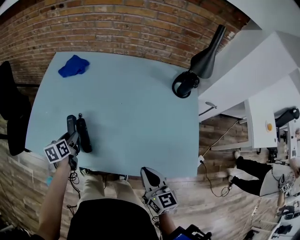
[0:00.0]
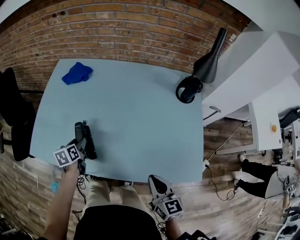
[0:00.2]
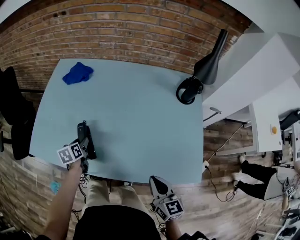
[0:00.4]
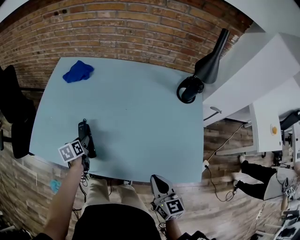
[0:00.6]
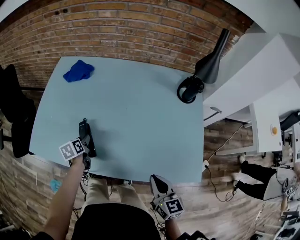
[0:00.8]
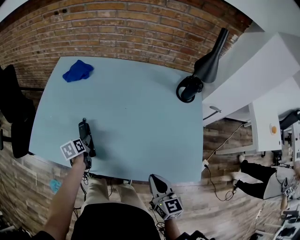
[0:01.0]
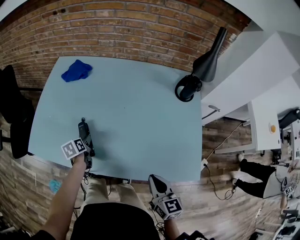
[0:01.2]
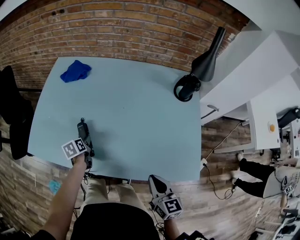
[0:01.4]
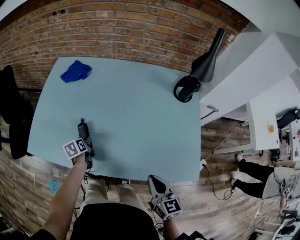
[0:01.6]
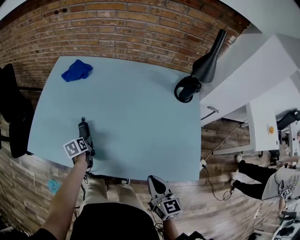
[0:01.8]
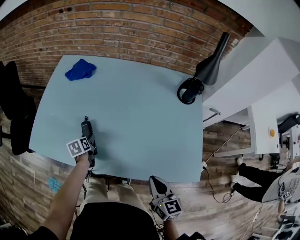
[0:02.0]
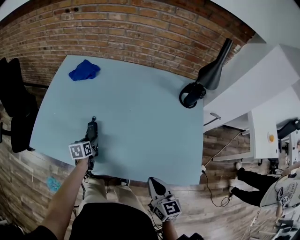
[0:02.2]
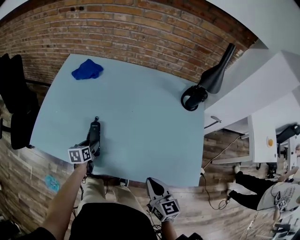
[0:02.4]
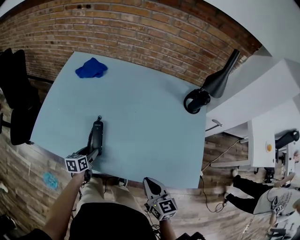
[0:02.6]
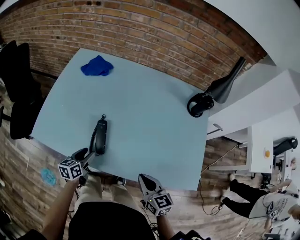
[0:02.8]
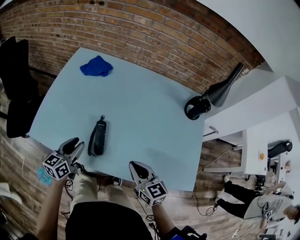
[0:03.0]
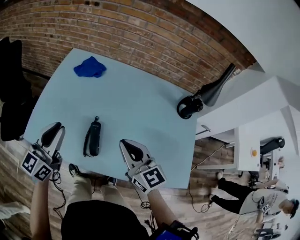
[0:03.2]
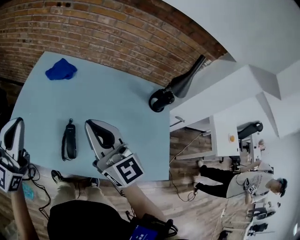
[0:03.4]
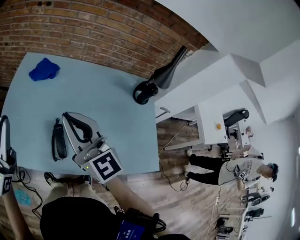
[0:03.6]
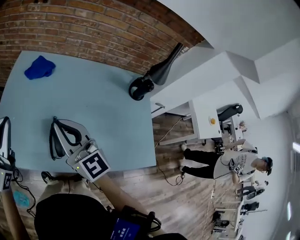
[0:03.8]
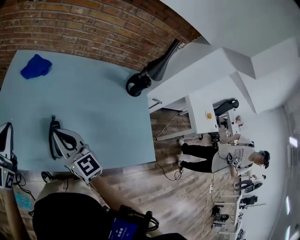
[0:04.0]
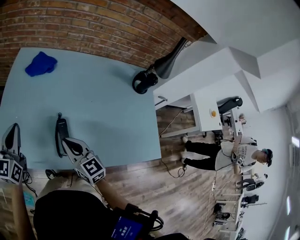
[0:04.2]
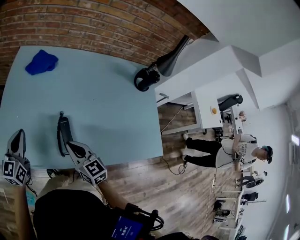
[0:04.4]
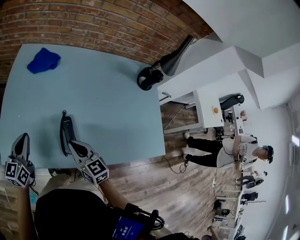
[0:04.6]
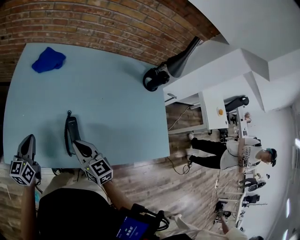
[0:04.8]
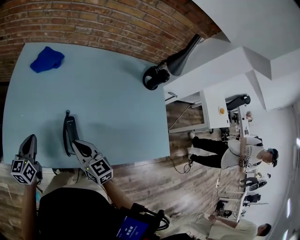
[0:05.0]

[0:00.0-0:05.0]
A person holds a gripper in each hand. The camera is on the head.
0.0 to 1.6 s: The left gripper heads downward, covering about 10 cm.
1.6 to 3.4 s: The right gripper heads upward, to the left and forward, covering about 40 cm, and points its fingers about 30 degrees further upward. Meanwhile the left gripper travels upward by about 50 cm, tilts its fingers approximately 70 degrees upward, and closes up.
3.4 to 5.0 s: The two grippers go some 30 cm downward. The left gripper angles its fingers downward, by approximately 30 degrees. The right gripper rotates some 30 degrees.

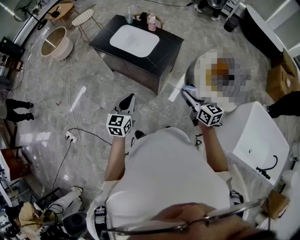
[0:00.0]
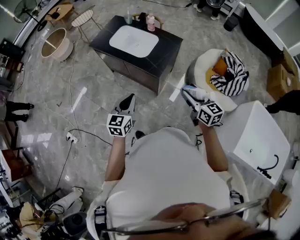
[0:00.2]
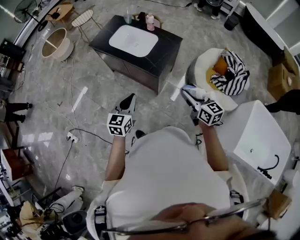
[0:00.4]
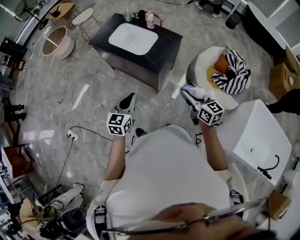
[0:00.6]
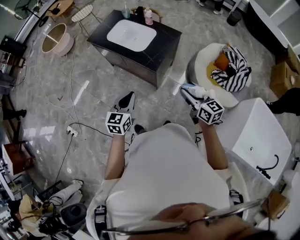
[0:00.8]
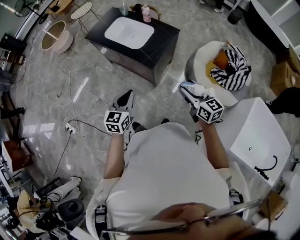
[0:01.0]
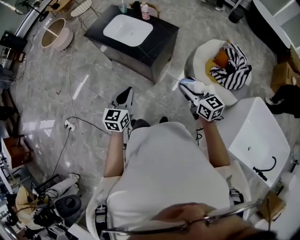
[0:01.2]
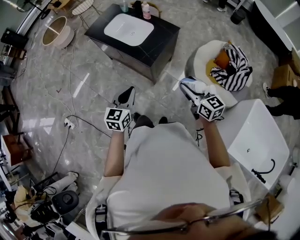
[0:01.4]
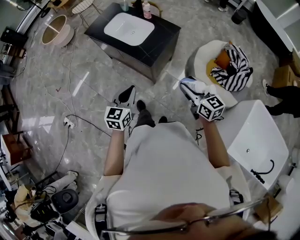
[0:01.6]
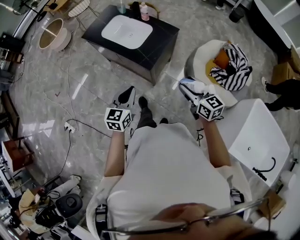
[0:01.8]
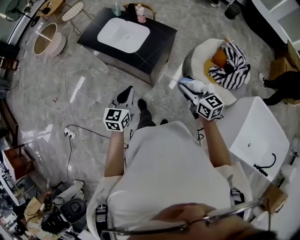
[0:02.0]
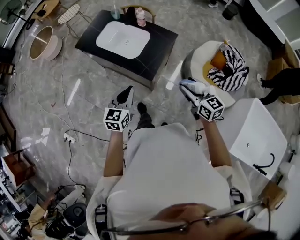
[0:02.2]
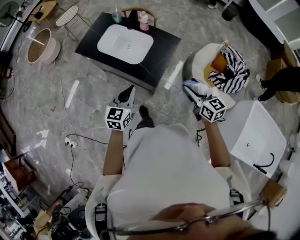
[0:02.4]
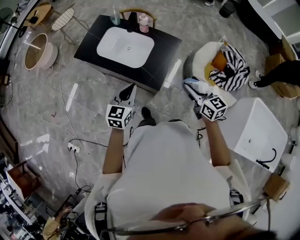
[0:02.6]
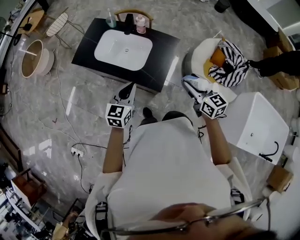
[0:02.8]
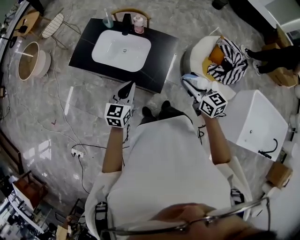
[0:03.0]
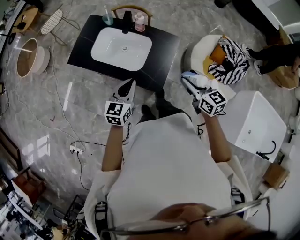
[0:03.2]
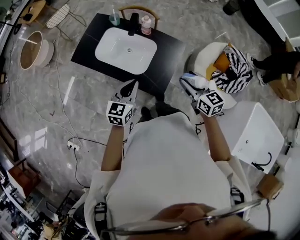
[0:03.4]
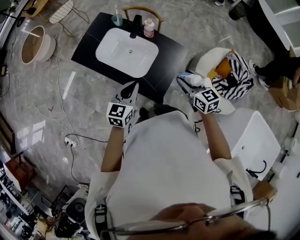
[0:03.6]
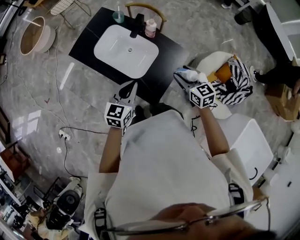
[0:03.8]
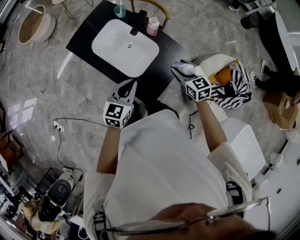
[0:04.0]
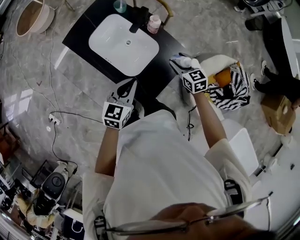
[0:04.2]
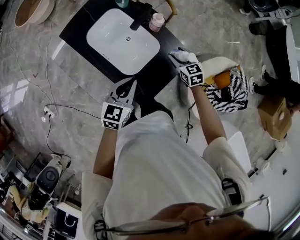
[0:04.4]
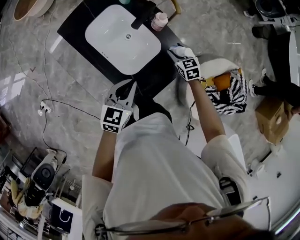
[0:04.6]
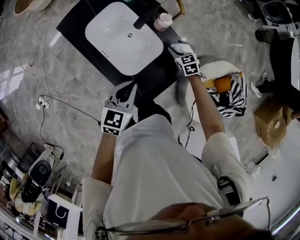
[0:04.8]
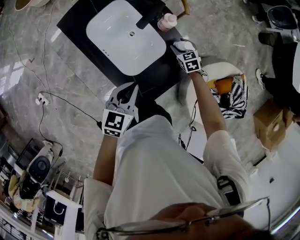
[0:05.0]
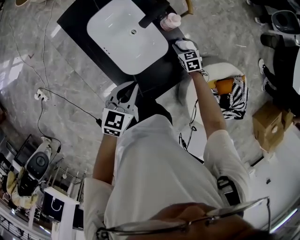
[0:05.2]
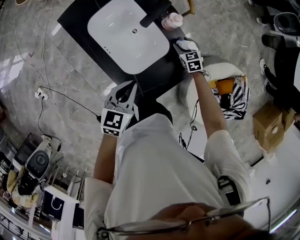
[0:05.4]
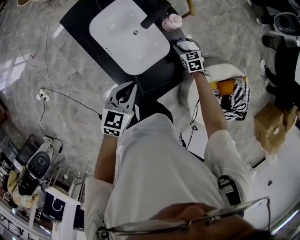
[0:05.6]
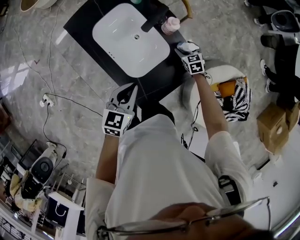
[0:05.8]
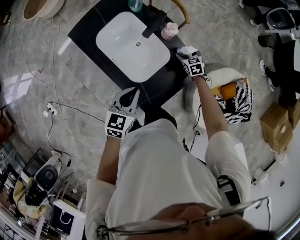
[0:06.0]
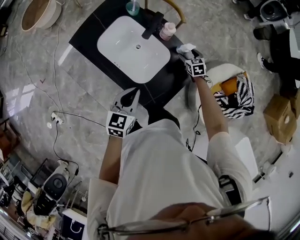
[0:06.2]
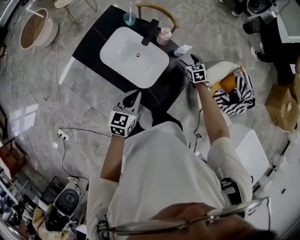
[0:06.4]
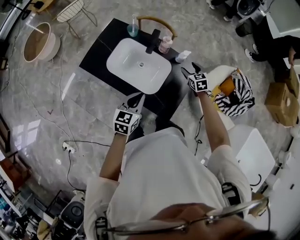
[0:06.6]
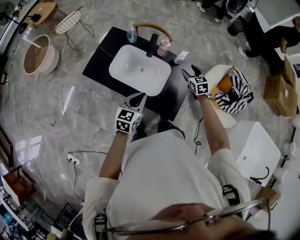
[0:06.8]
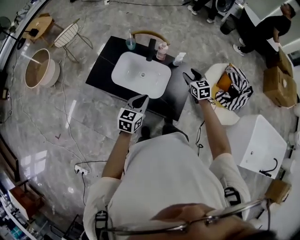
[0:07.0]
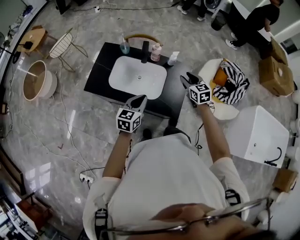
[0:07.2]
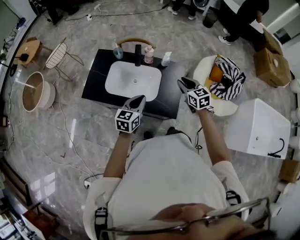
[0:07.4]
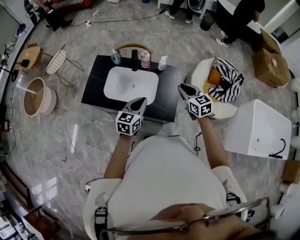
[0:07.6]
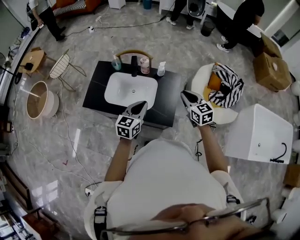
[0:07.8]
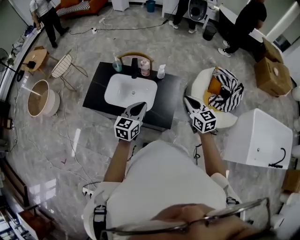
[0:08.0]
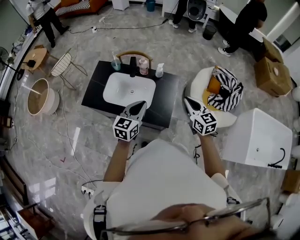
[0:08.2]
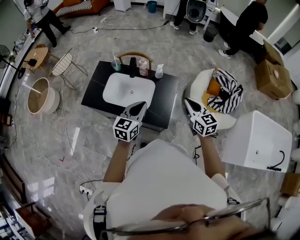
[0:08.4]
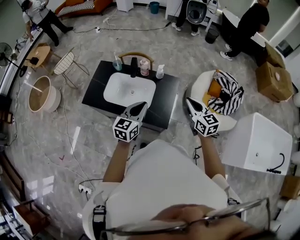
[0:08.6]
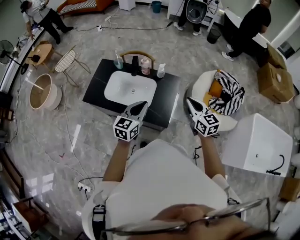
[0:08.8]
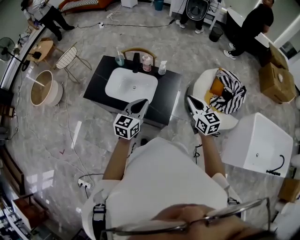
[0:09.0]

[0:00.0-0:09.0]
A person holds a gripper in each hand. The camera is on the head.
0.0 to 1.6 s: The grippers both shift to the right by some 10 cm.
1.6 to 3.0 s: Both grippers travel together forward, roughly 25 cm.
3.0 to 4.4 s: The left gripper is displaced forward, downward and to the right by approximately 15 cm; the right gripper goes about 40 cm forward and downward, and swivels roughly 30 degrees.
4.4 to 6.0 s: The right gripper heads downward and forward, covering about 15 cm.
6.0 to 7.6 s: The right gripper travels upward by roughly 30 cm, changes its angle by about 40 degrees, and closes up. The left gripper shifts about 10 cm upward, and swivels roughly 30 degrees.
7.6 to 9.0 s: The right gripper shifts some 10 cm to the right, upward and backward, while the left gripper moves upward and to the right, roughly 10 cm.

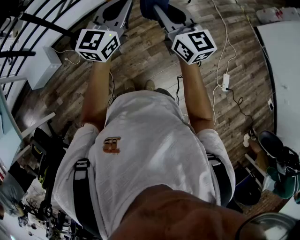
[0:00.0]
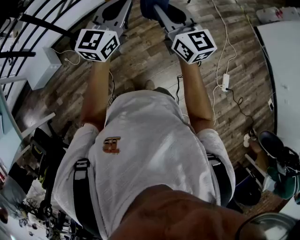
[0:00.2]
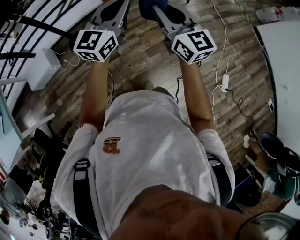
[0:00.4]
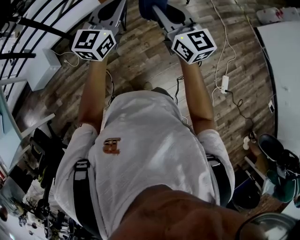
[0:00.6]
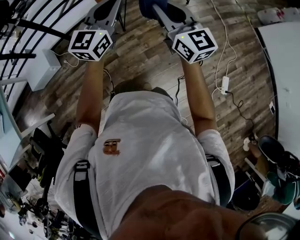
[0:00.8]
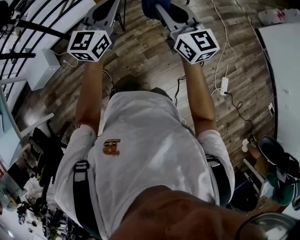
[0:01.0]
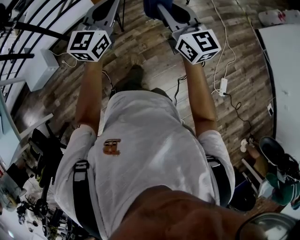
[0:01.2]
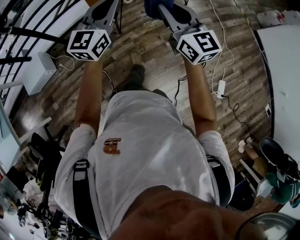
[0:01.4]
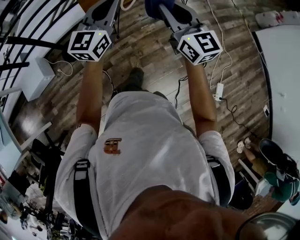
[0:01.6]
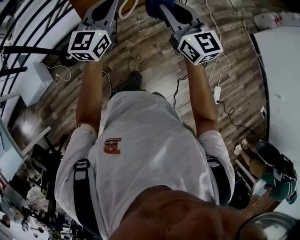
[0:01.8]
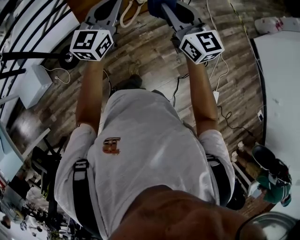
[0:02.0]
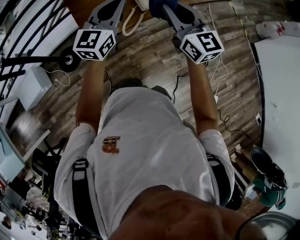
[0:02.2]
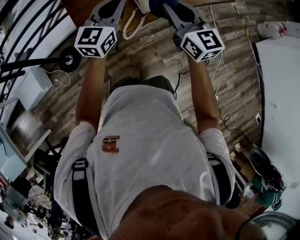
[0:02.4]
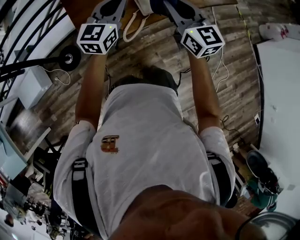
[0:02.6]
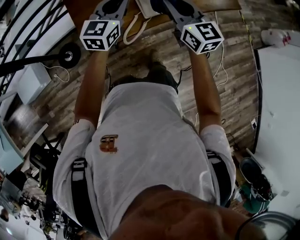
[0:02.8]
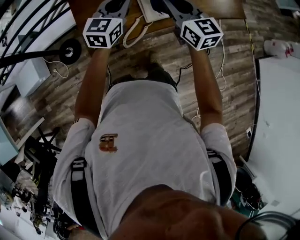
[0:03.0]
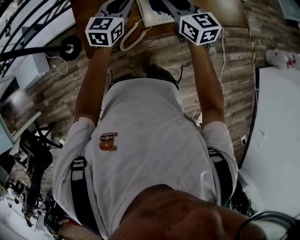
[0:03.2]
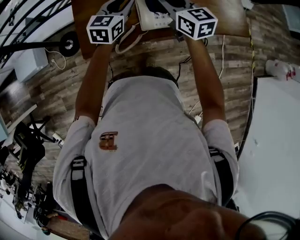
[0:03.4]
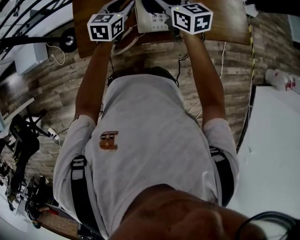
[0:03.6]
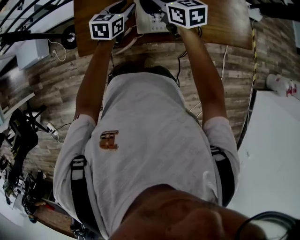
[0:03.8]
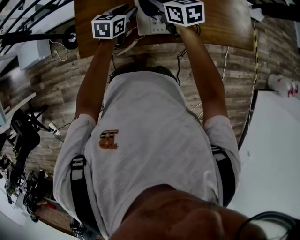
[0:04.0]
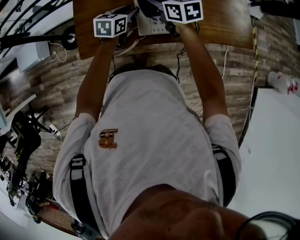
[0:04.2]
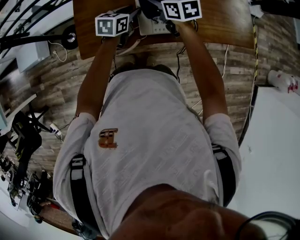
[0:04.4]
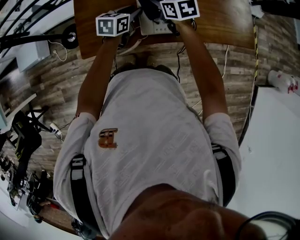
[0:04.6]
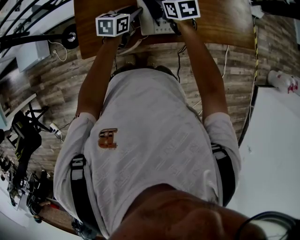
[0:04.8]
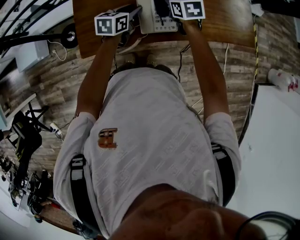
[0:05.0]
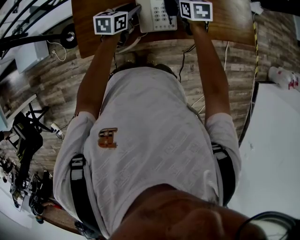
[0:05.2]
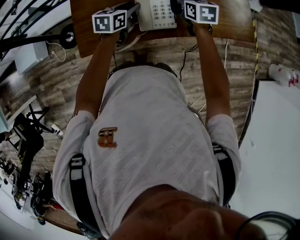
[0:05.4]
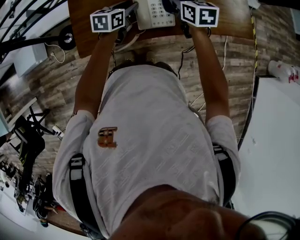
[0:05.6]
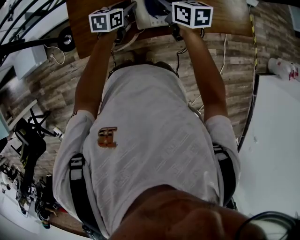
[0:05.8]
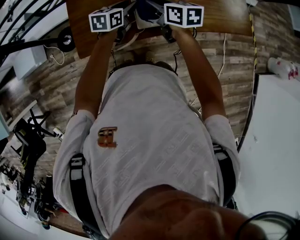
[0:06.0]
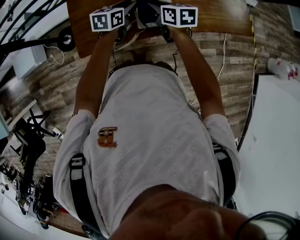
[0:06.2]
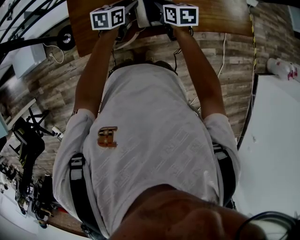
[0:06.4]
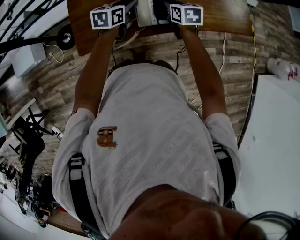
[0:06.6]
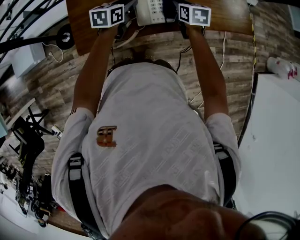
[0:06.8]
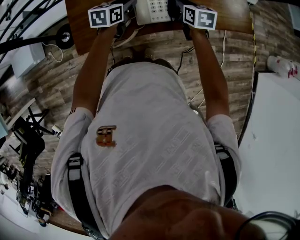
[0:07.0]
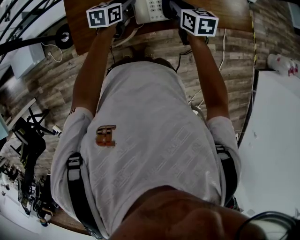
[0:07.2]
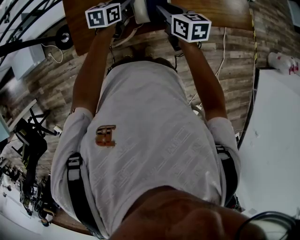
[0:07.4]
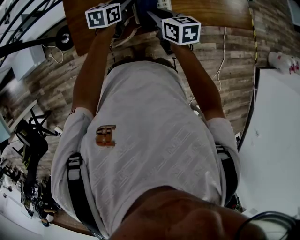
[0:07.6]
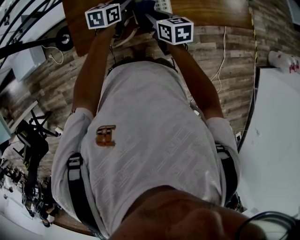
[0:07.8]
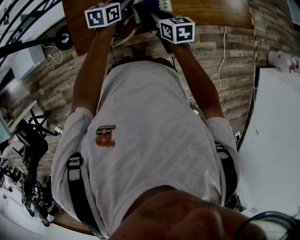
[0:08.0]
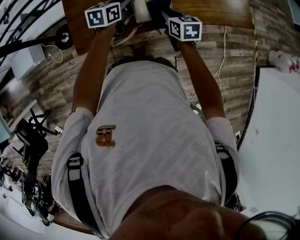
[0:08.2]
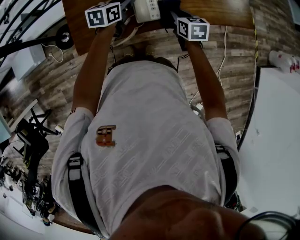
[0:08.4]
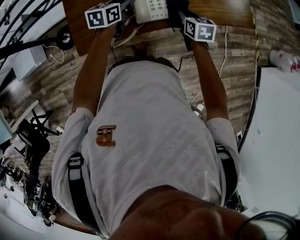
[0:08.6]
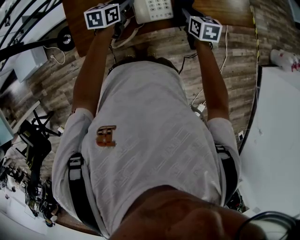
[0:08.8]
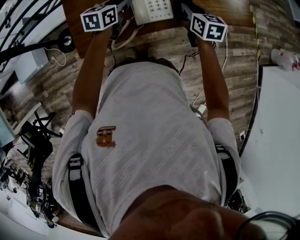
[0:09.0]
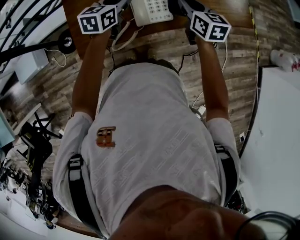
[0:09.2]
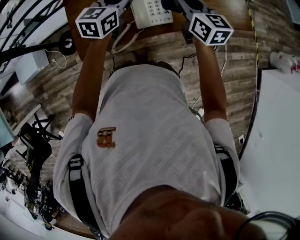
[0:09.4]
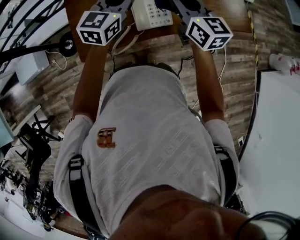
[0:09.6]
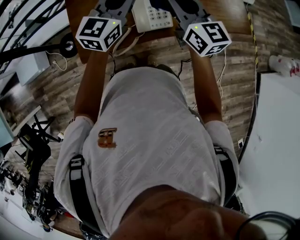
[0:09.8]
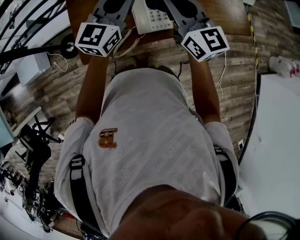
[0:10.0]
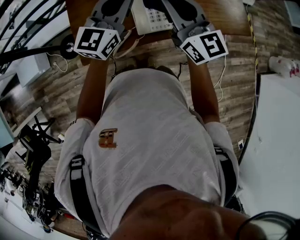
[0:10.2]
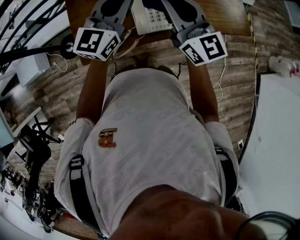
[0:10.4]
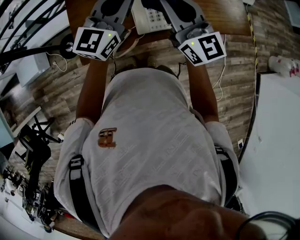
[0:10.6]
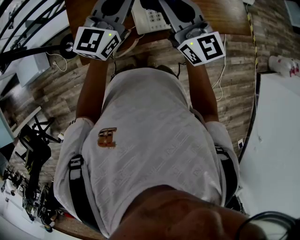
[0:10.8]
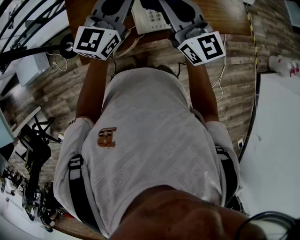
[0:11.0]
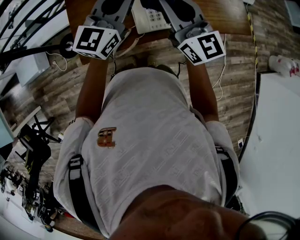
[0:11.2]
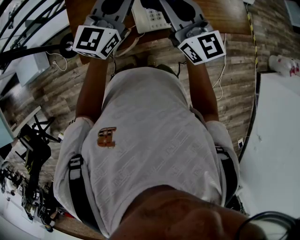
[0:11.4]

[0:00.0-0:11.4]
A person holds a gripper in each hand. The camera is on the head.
0.0 to 1.4 s: The right gripper heads to the right and forward, covering about 20 cm. The left gripper shifts some 20 cm forward and to the right.
1.4 to 2.8 s: The two grippers travel together, forward, roughly 50 cm.
2.8 to 4.2 s: The left gripper moves downward, forward and to the right, some 20 cm, changes its angle by approximately 40 degrees, and opens. The right gripper shifts approximately 25 cm forward and downward, and changes its angle by some 40 degrees.
4.2 to 5.6 s: The right gripper travels to the right by approximately 10 cm.
5.6 to 7.2 s: The right gripper is displaced backward by roughly 5 cm, and goes to the left and returns, approximately 5 cm each way.
7.2 to 8.6 s: The right gripper moves downward and to the right, approximately 10 cm.
8.6 to 10.0 s: The two grippers go roughly 25 cm upward. The left gripper points its fingers some 30 degrees further upward, and closes up. Meanwhile the right gripper points its fingers approximately 50 degrees further upward.
10.0 to 11.4 s: The grippers stay close to where they were, moving slightly.
